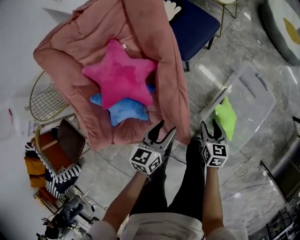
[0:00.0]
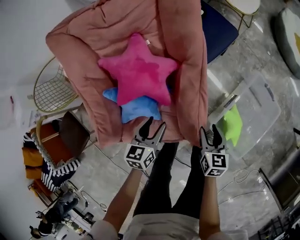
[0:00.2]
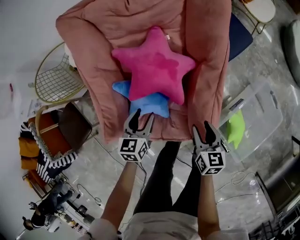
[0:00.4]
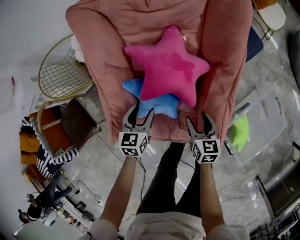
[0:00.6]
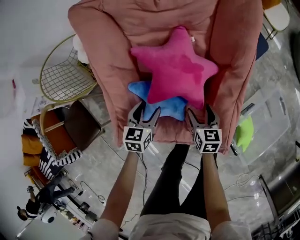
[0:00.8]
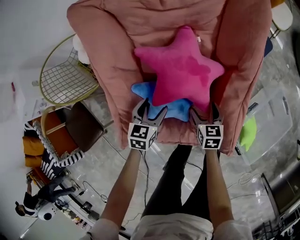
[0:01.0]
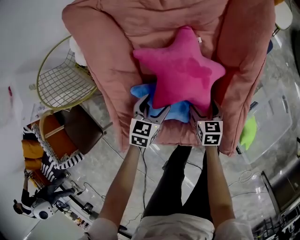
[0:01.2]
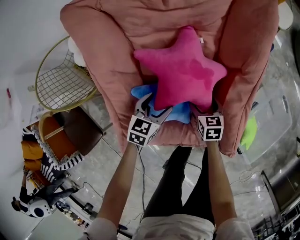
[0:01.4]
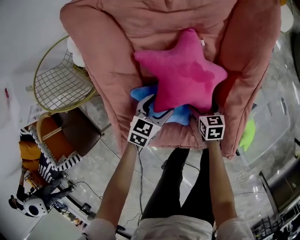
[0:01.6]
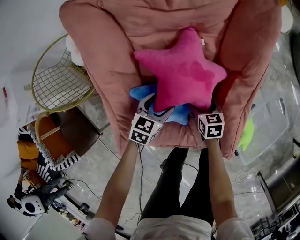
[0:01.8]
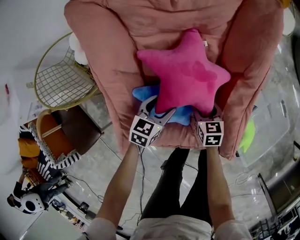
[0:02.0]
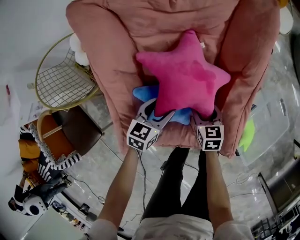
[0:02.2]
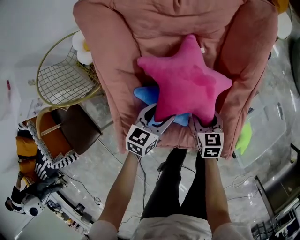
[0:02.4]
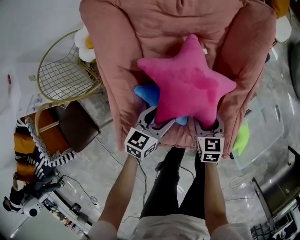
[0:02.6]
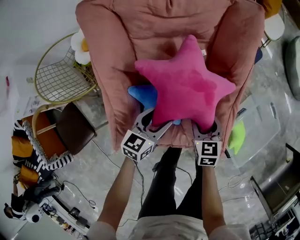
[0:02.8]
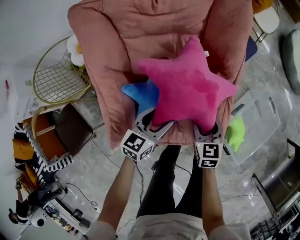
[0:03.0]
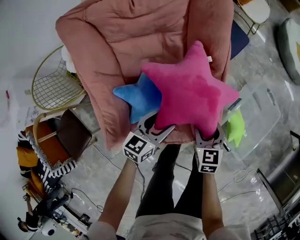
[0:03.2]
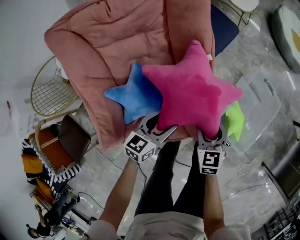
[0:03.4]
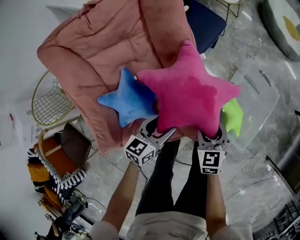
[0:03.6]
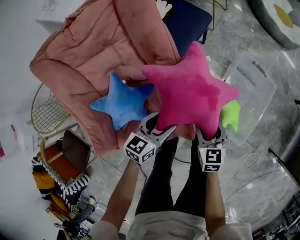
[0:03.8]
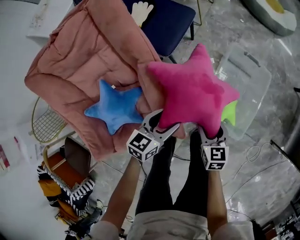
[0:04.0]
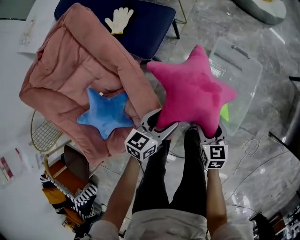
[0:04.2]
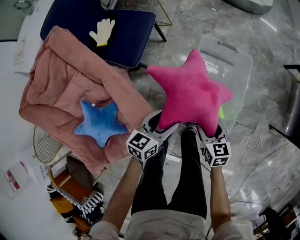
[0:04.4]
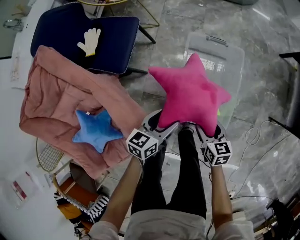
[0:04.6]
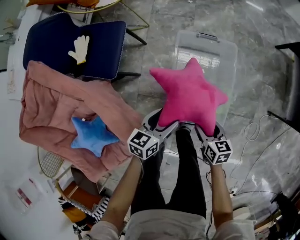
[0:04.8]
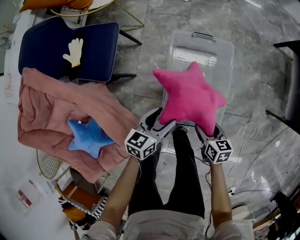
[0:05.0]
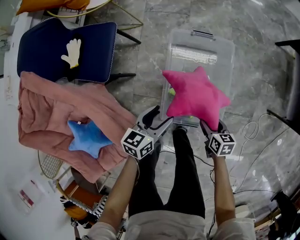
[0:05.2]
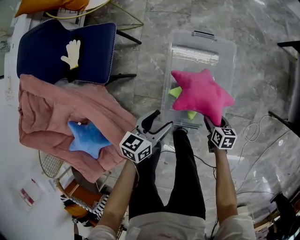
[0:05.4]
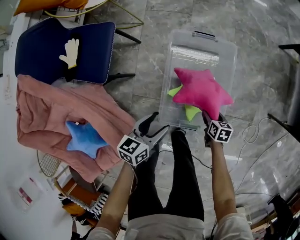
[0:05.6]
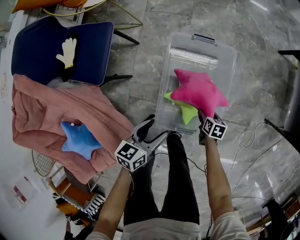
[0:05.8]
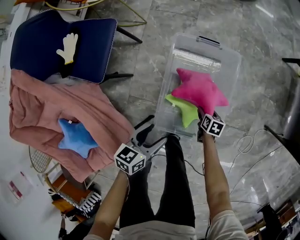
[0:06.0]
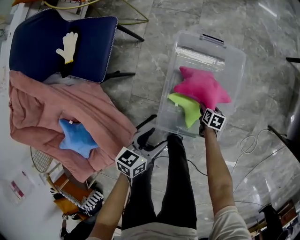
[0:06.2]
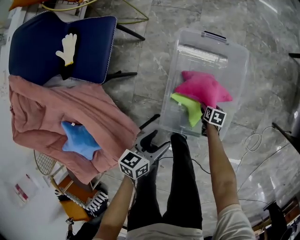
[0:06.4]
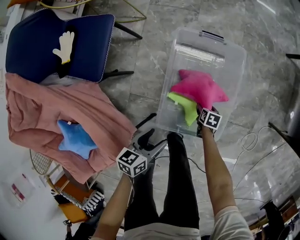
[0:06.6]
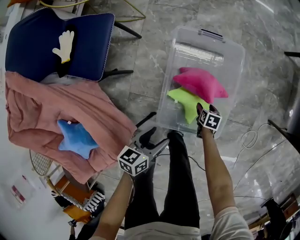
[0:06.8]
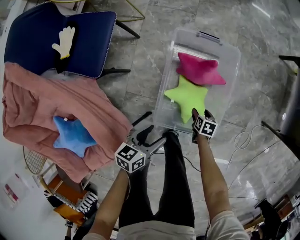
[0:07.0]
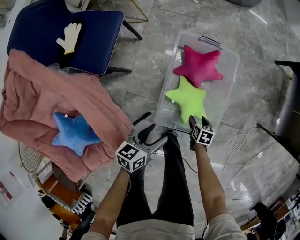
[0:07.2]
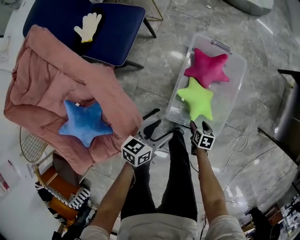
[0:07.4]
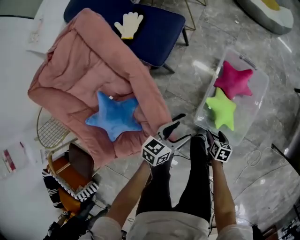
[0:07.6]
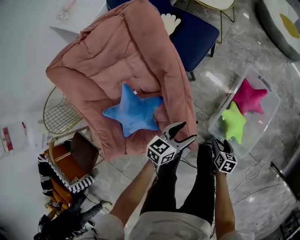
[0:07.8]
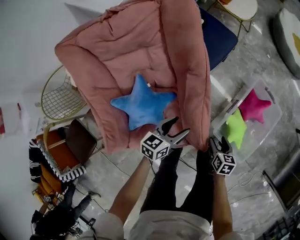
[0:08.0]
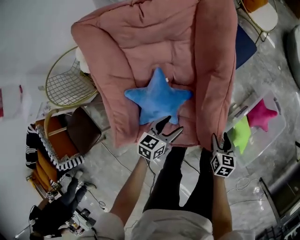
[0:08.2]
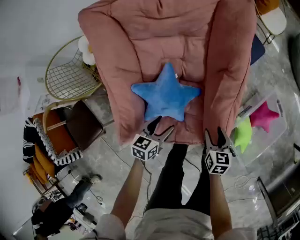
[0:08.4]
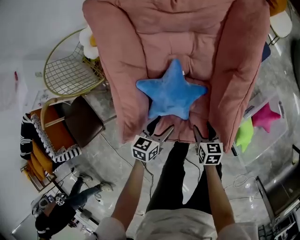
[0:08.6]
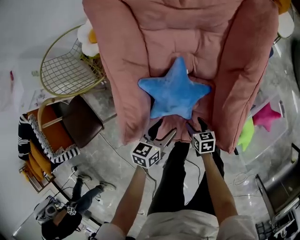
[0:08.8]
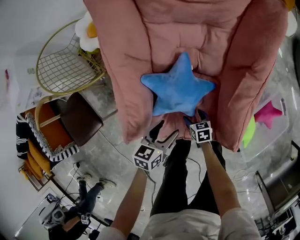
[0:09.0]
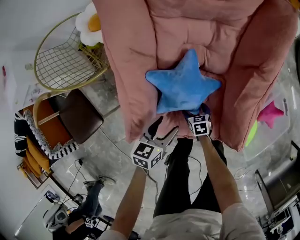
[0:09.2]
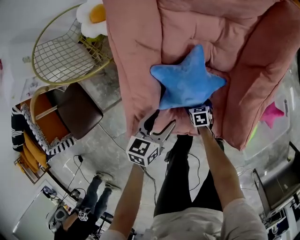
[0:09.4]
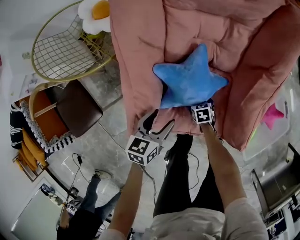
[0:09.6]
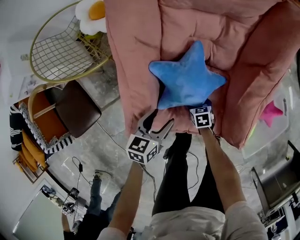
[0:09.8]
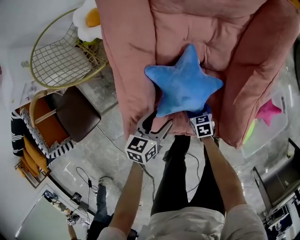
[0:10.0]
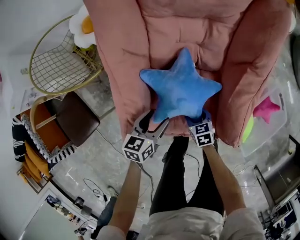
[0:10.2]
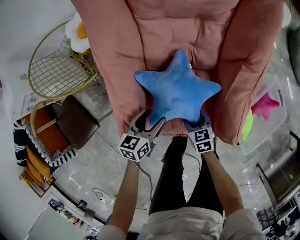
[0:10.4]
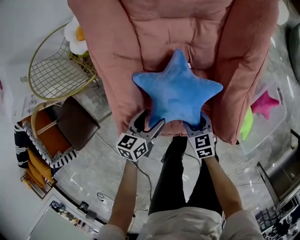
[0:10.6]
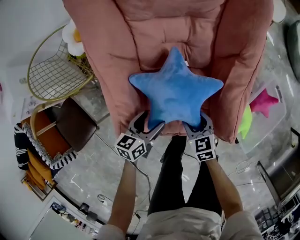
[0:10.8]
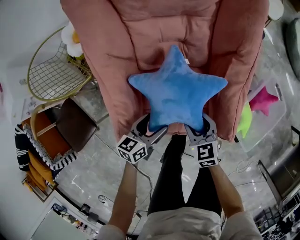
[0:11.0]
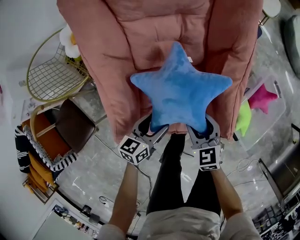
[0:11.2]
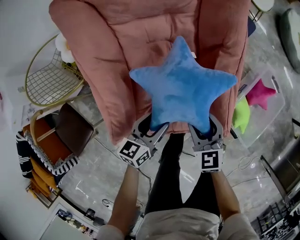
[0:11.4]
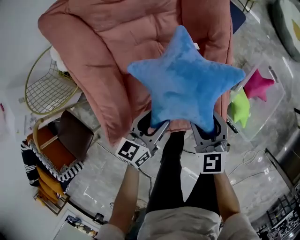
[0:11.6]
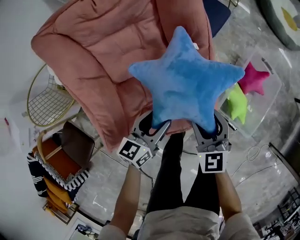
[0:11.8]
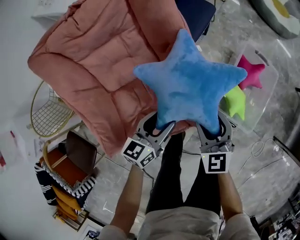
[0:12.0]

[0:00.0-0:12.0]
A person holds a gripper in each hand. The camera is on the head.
0:00.0 to 0:01.6: The left gripper shifts by roughly 30 cm. The right gripper changes place by some 35 cm, changes its angle by about 20 degrees, and opens up.
0:01.6 to 0:03.0: The two grippers go approximately 15 cm upward, to the right and backward. The right gripper closes up.
0:03.0 to 0:04.4: The pair of grippers is taken about 40 cm. The left gripper swivels about 30 degrees, while the right gripper rotates roughly 30 degrees.
0:04.4 to 0:06.0: The left gripper shifts approximately 15 cm to the right, downward and forward. Meanwhile the right gripper shifts some 35 cm downward, to the right and forward, and changes its angle by approximately 40 degrees.
0:06.0 to 0:07.6: The right gripper moves backward, to the left and upward, about 25 cm; the left gripper travels to the left, backward and upward by about 15 cm.
0:07.6 to 0:09.0: The pair of grippers is taken about 50 cm. The right gripper twists approximately 50 degrees counterclockwise, seen from behind. Meanwhile the left gripper turns by about 40 degrees.
0:09.0 to 0:10.4: The left gripper changes place by some 5 cm; the right gripper is displaced upward by approximately 10 cm.
0:10.4 to 0:12.0: The right gripper moves some 30 cm, and rotates some 40 degrees. The left gripper changes place by approximately 30 cm, and swivels about 30 degrees.

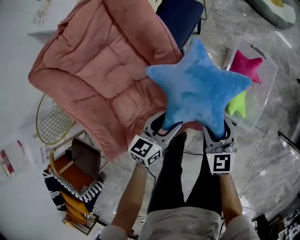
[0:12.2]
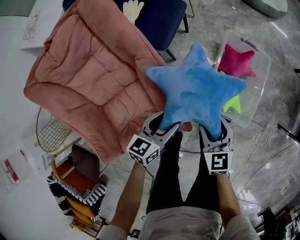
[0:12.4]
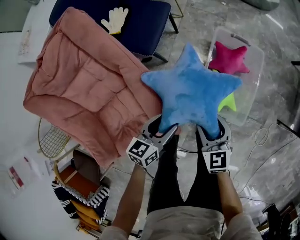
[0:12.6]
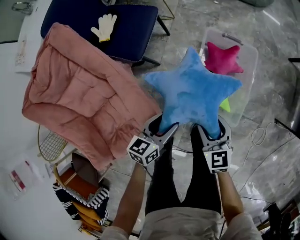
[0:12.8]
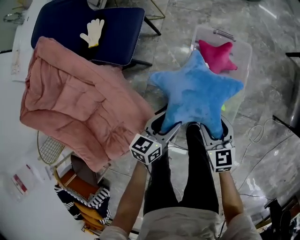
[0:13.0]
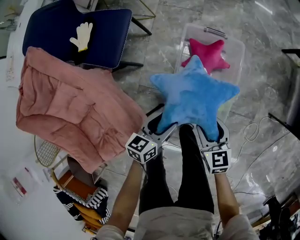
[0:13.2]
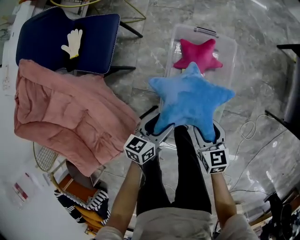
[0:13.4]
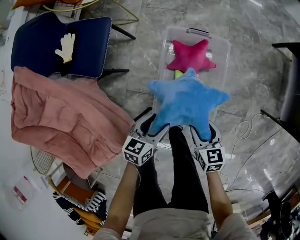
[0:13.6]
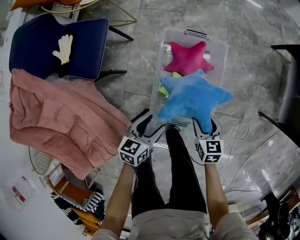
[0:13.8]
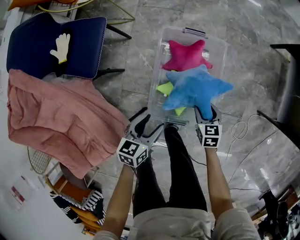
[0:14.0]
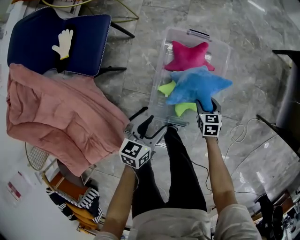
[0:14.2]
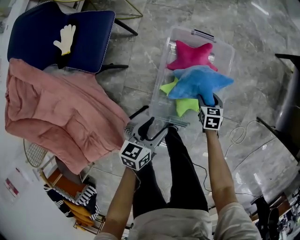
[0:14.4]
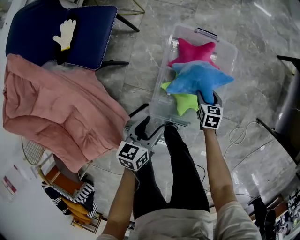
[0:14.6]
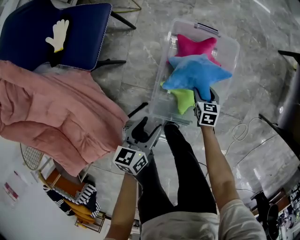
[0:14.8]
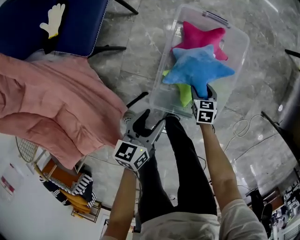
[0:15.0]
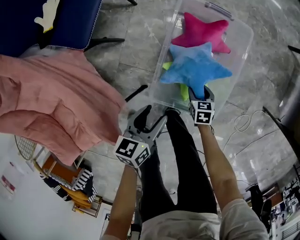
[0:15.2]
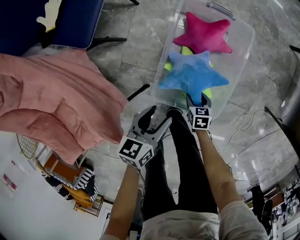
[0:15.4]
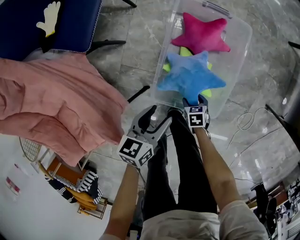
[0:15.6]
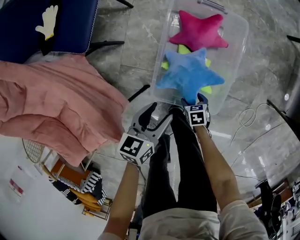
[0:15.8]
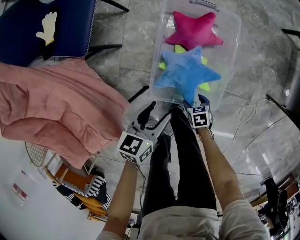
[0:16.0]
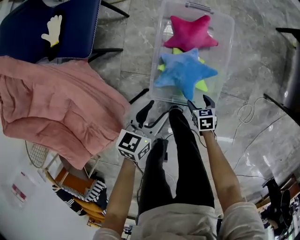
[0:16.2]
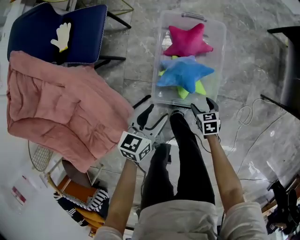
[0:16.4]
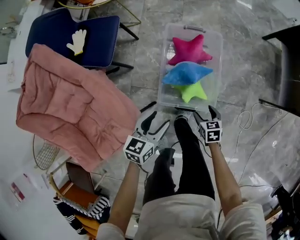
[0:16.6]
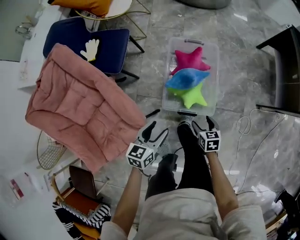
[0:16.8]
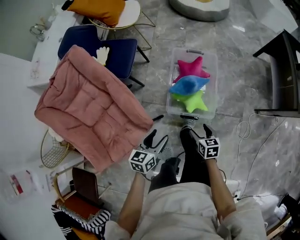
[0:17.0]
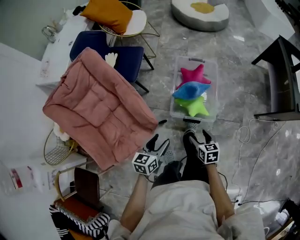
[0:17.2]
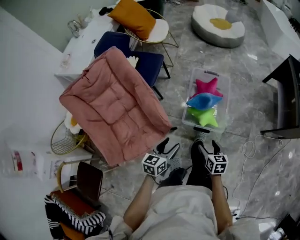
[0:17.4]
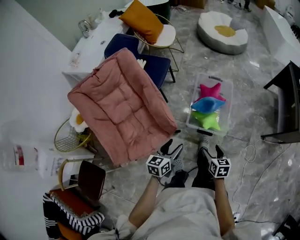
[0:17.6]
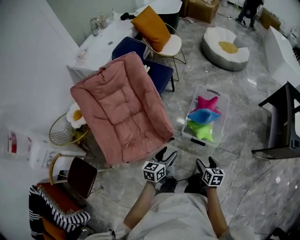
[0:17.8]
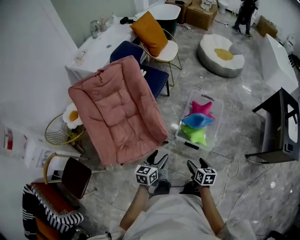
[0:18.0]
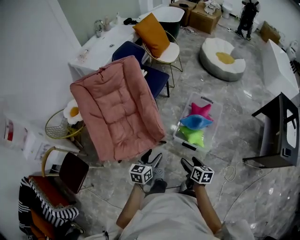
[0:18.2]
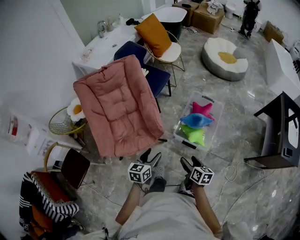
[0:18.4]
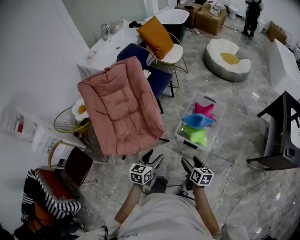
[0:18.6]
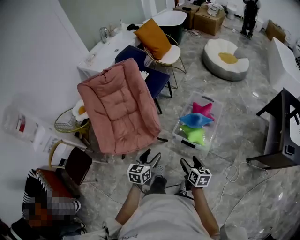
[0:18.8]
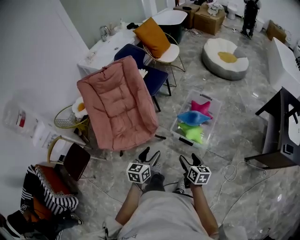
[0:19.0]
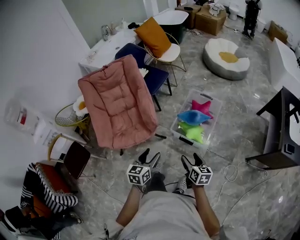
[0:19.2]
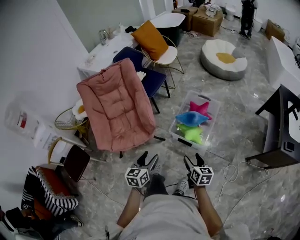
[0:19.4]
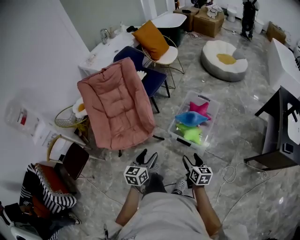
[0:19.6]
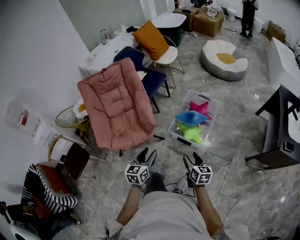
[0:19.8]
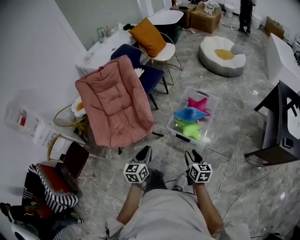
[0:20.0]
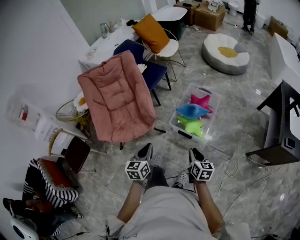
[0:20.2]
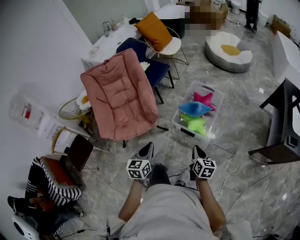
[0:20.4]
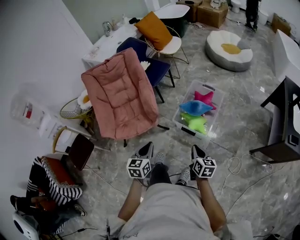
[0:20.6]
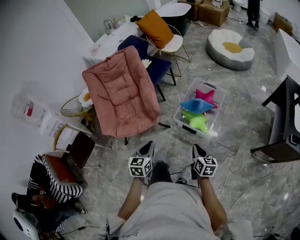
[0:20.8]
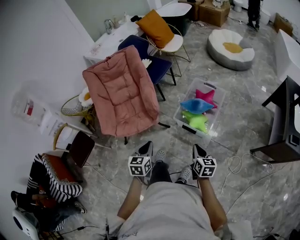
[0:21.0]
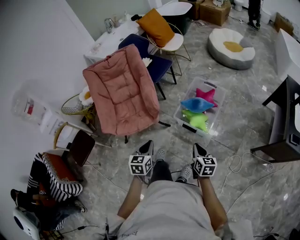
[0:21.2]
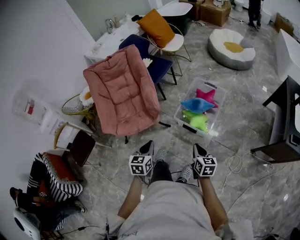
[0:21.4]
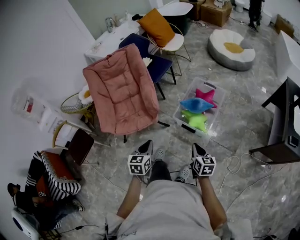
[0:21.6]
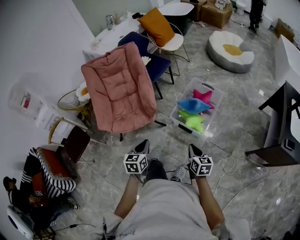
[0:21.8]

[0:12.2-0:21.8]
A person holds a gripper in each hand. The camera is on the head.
0:12.2 to 0:13.8: The left gripper is displaced to the right and forward by some 35 cm, and rotates approximately 20 degrees, while the right gripper shifts roughly 40 cm to the right, and swivels roughly 40 degrees.
0:13.8 to 0:15.4: The left gripper travels downward by roughly 5 cm, while the right gripper travels downward by about 20 cm.
0:15.4 to 0:17.0: Both grippers travel together upward and backward, roughly 35 cm. The right gripper changes its angle by about 20 degrees.
0:17.0 to 0:18.6: The left gripper is displaced backward and upward by roughly 20 cm. The right gripper goes roughly 25 cm upward and backward.
0:18.6 to 0:20.2: The left gripper is displaced backward and to the right by approximately 10 cm, and closes up. Meanwhile the right gripper is displaced to the right and backward by roughly 15 cm, and closes up.
0:20.2 to 0:21.8: The grippers move only a little.

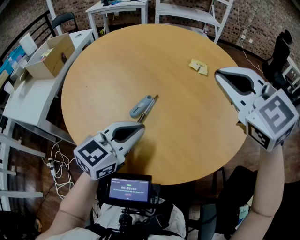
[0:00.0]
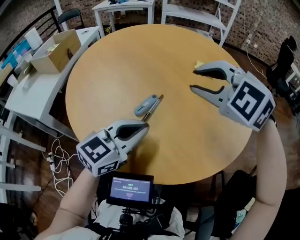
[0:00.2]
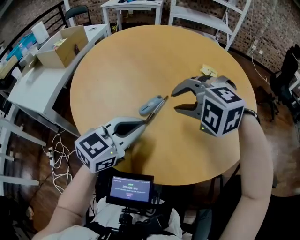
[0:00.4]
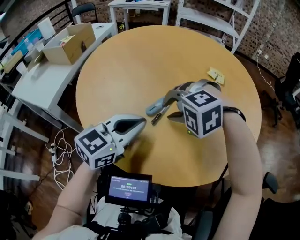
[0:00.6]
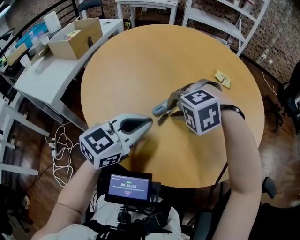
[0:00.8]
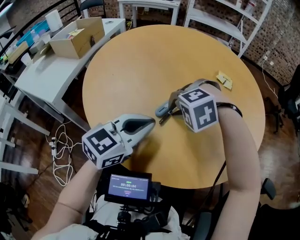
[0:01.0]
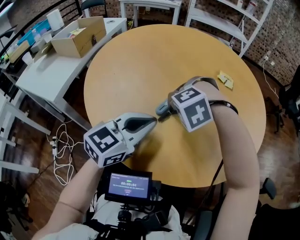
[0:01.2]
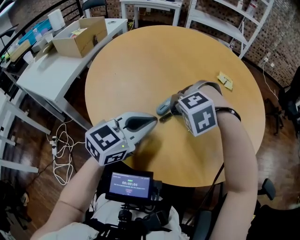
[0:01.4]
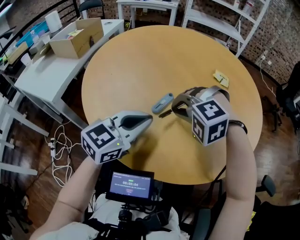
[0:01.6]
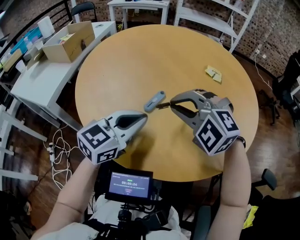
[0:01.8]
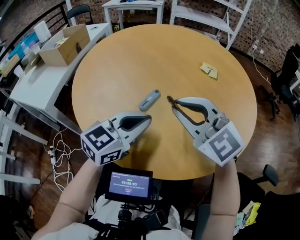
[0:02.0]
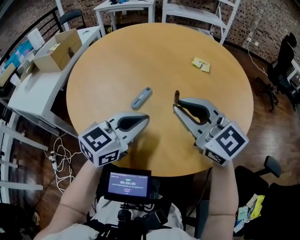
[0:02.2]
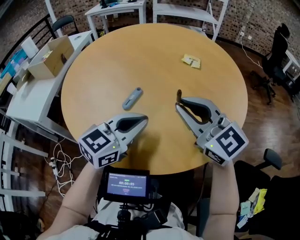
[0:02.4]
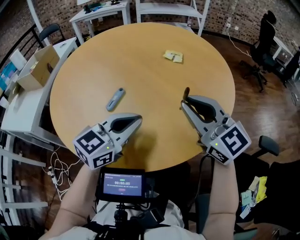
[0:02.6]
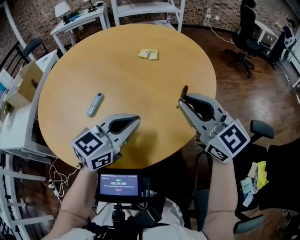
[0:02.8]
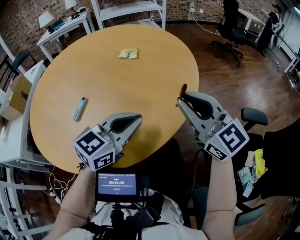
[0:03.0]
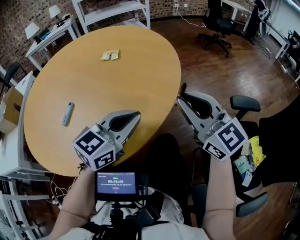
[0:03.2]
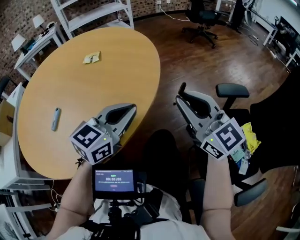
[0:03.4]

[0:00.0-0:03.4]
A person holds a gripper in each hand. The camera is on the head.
0:00.0 to 0:01.6: The right gripper moves downward, approximately 20 cm, angles its fingers downward, by approximately 40 degrees, and opens, then closes again.
0:01.6 to 0:03.4: The left gripper shifts by about 40 cm, and swivels approximately 30 degrees; the right gripper shifts by roughly 50 cm, and tips its fingers upward by roughly 70 degrees.
